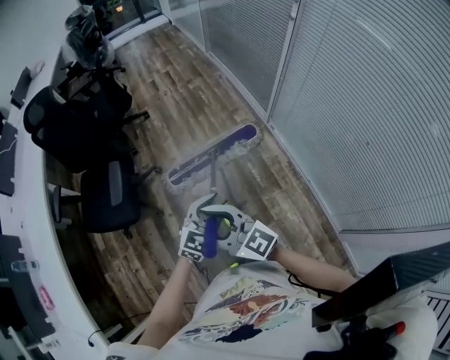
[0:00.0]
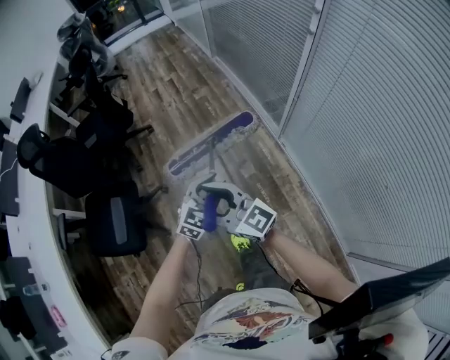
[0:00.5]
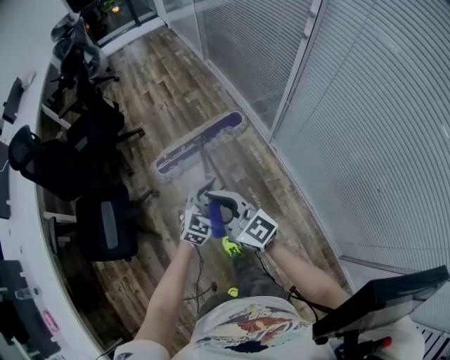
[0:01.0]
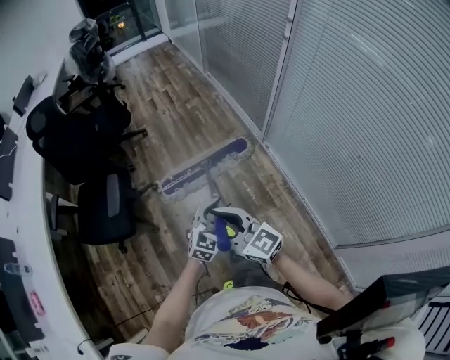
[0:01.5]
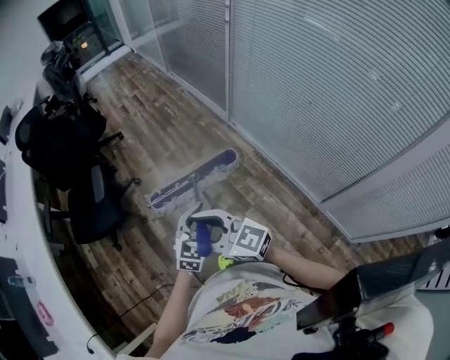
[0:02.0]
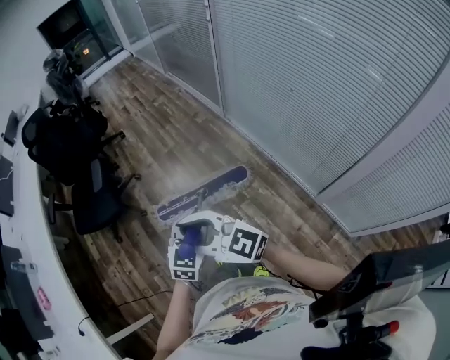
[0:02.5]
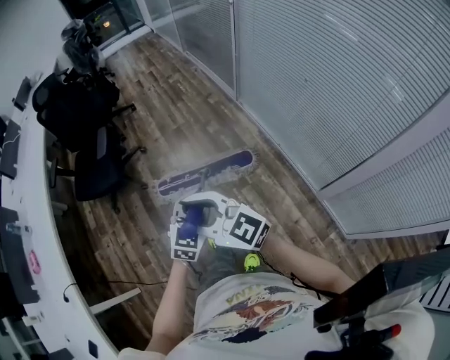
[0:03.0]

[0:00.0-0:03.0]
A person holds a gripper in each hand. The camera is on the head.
0.0 to 1.5 s: The left gripper travels forward and back again, approximately 30 cm each way; the right gripper is displaced to the right by some 5 cm, and reaches roughly 30 cm forward, then returns.
1.5 to 3.0 s: The two grippers travel together, backward, roughly 40 cm.

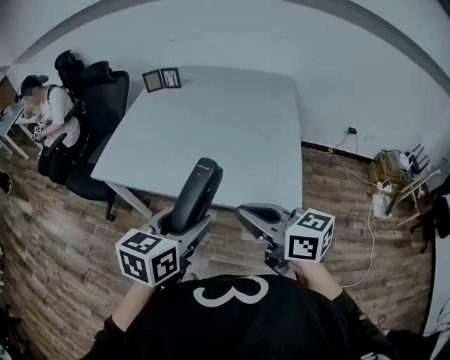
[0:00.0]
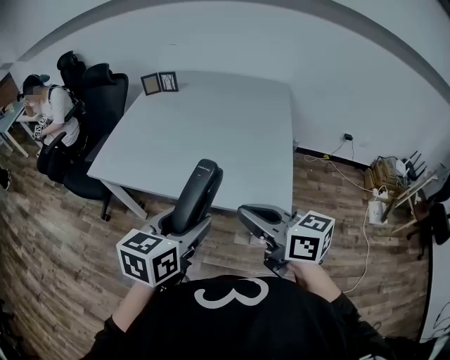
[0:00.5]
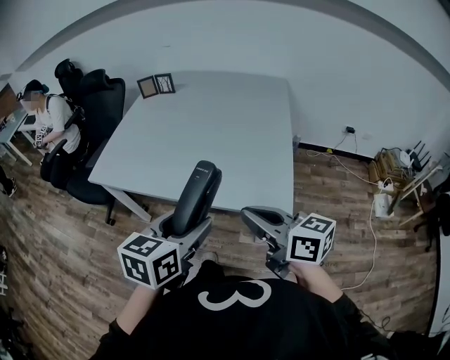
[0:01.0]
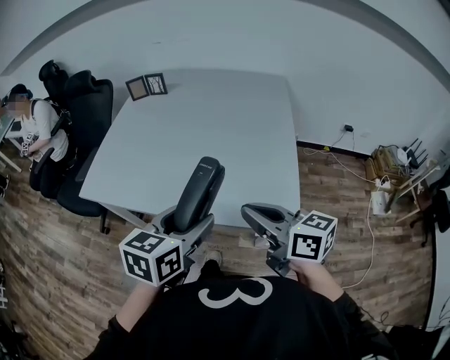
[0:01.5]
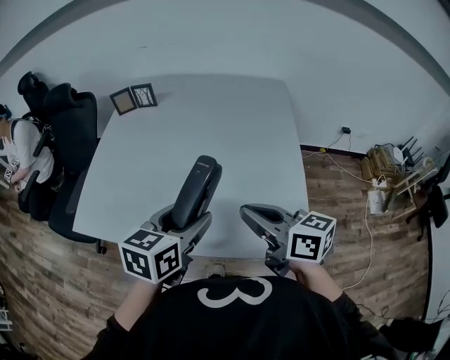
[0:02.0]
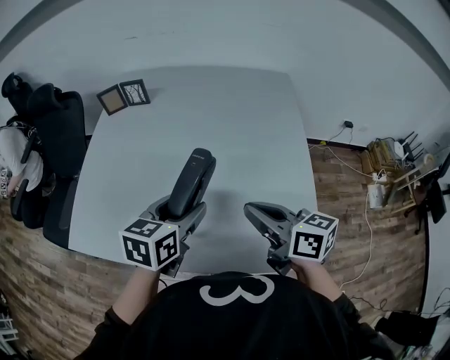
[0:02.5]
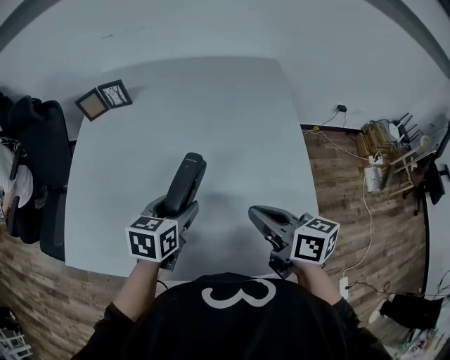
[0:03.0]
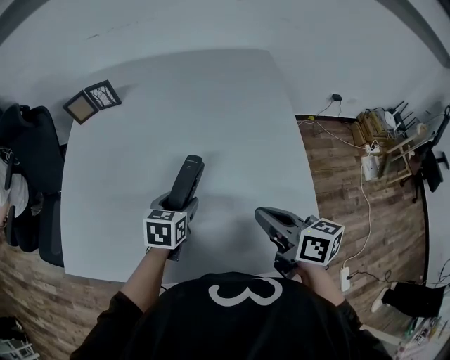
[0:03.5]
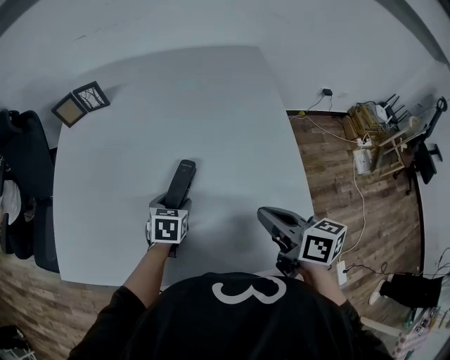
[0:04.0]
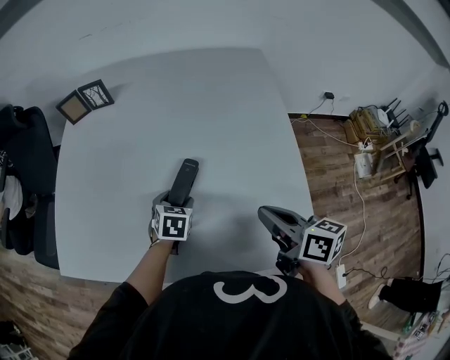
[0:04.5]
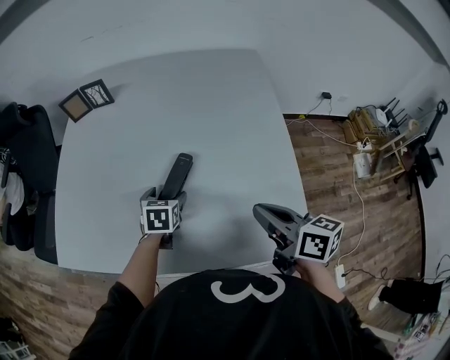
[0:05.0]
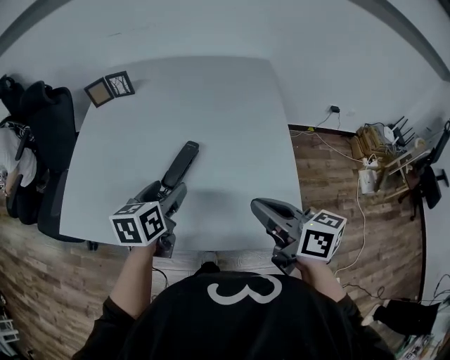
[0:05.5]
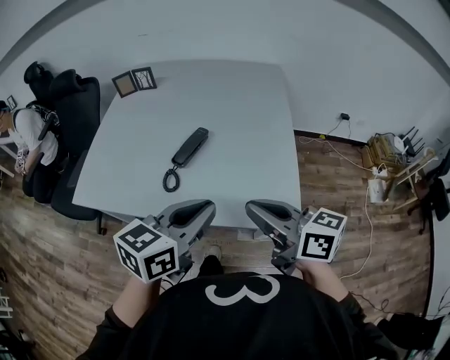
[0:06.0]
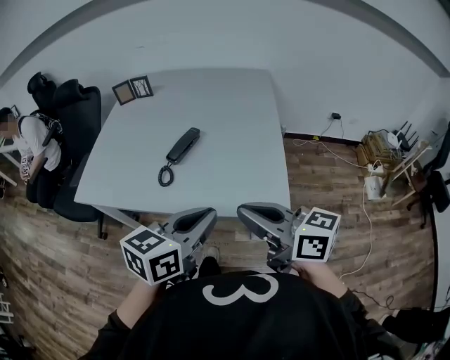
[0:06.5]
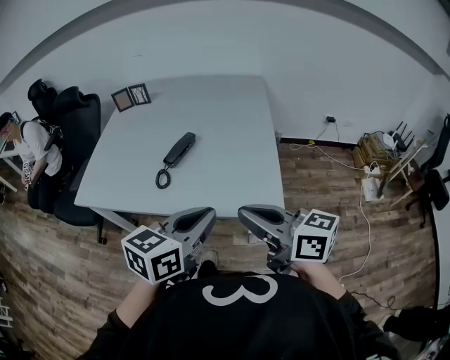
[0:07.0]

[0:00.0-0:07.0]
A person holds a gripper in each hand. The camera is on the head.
0.0 to 2.0 s: Both grippers move forward, approximately 20 cm.
2.0 to 3.5 s: The right gripper moves downward and forward, roughly 15 cm, and swivels about 20 degrees. Meanwhile the left gripper heads downward and forward, covering some 25 cm.
5.0 to 7.0 s: The left gripper heads backward and upward, covering roughly 40 cm, points its fingers about 30 degrees further upward, and closes its fingers, while the right gripper moves backward and upward, approximately 25 cm, and turns by some 30 degrees.

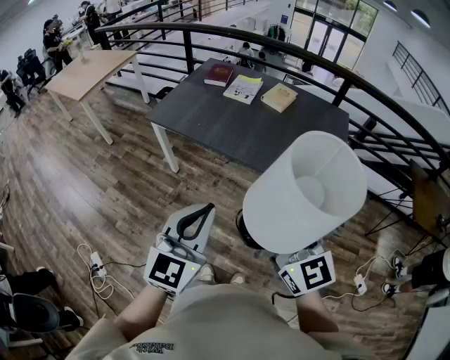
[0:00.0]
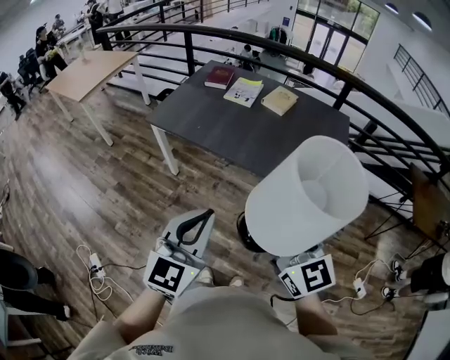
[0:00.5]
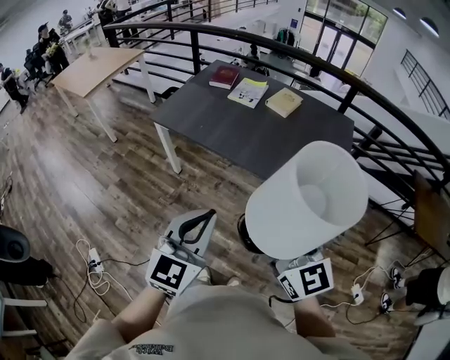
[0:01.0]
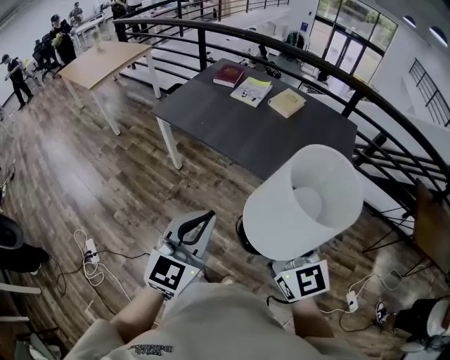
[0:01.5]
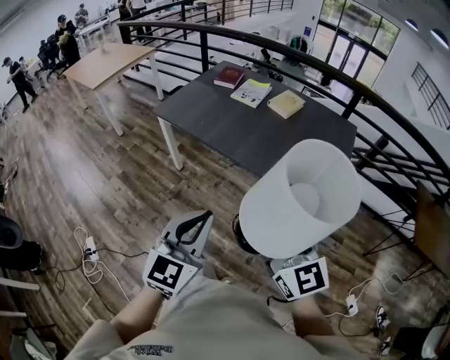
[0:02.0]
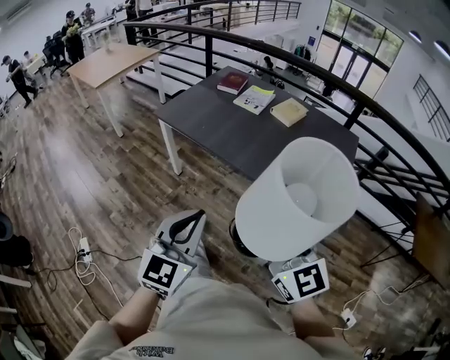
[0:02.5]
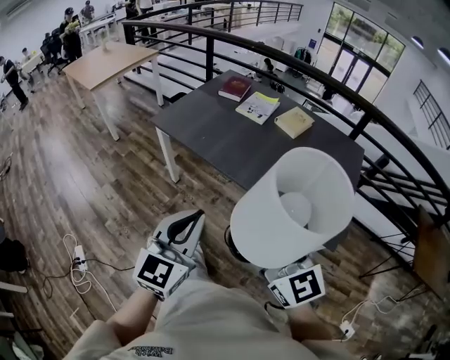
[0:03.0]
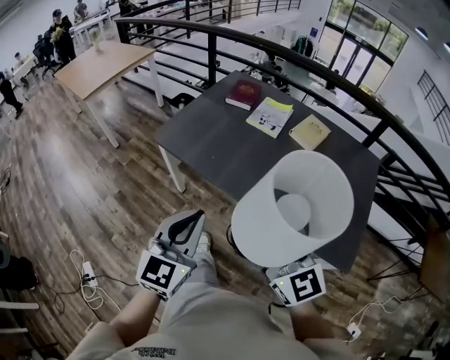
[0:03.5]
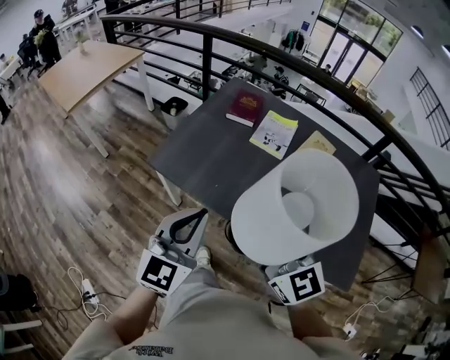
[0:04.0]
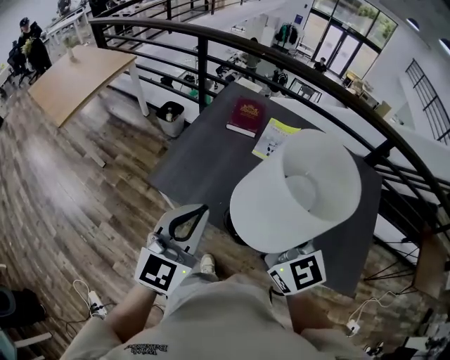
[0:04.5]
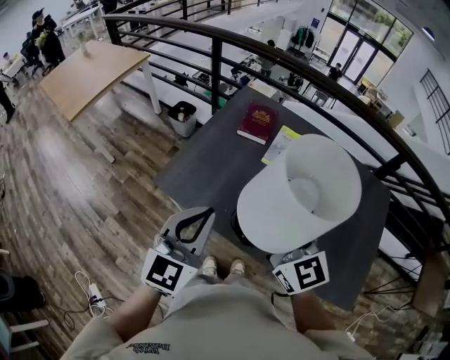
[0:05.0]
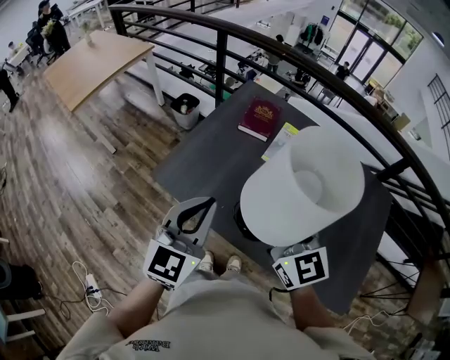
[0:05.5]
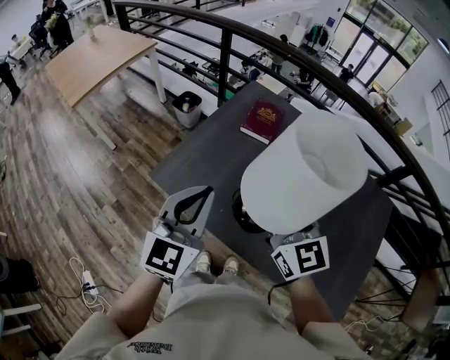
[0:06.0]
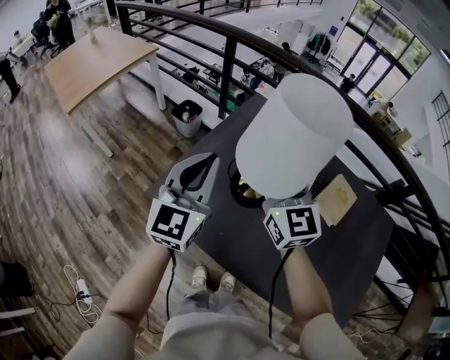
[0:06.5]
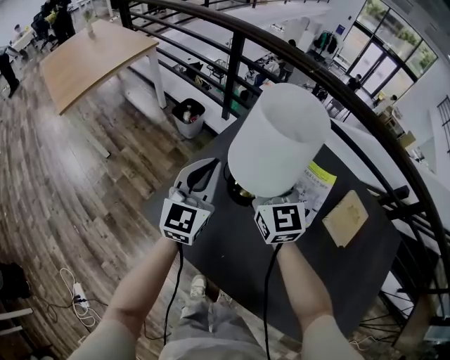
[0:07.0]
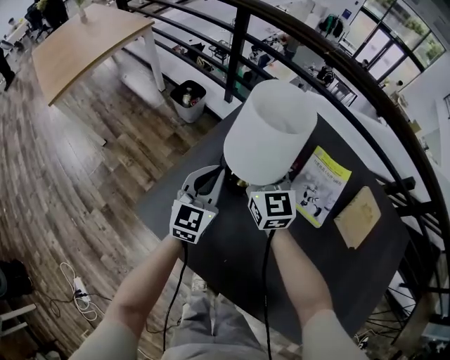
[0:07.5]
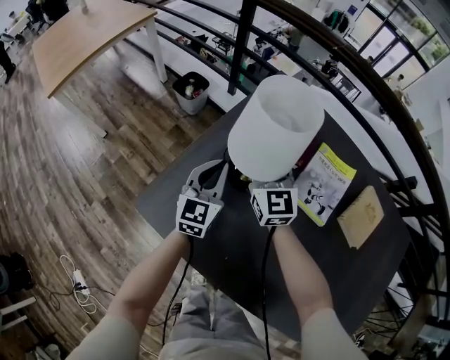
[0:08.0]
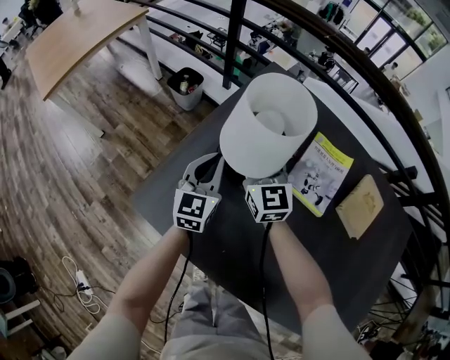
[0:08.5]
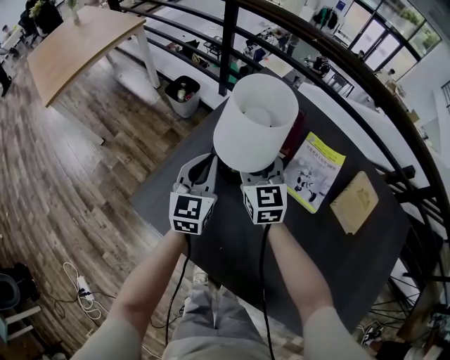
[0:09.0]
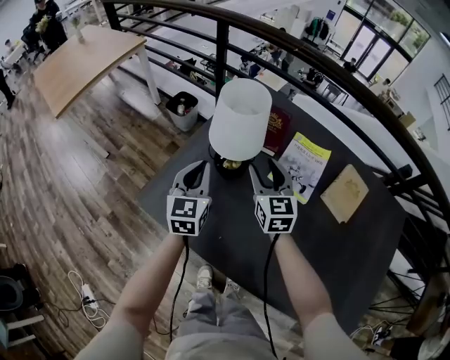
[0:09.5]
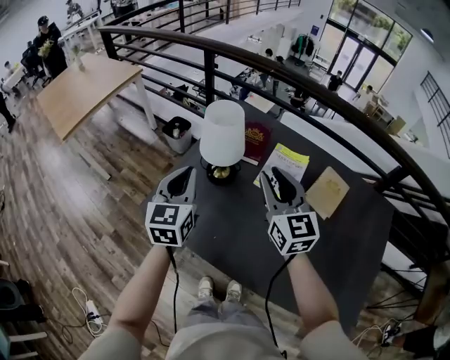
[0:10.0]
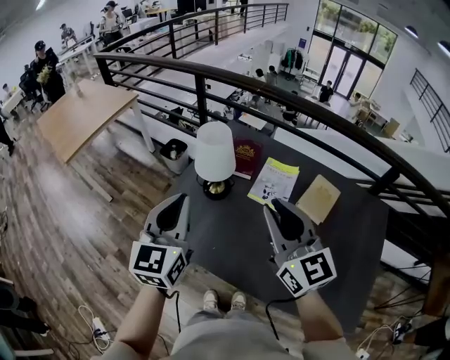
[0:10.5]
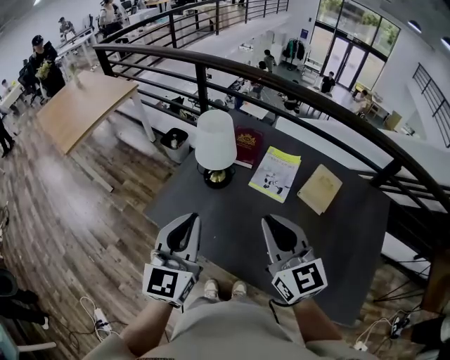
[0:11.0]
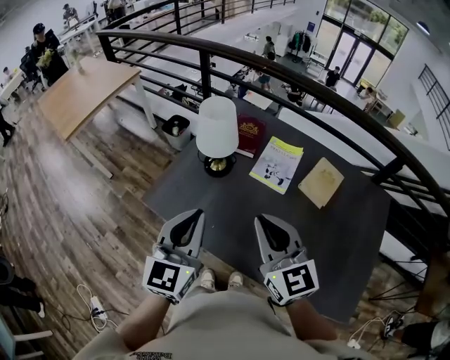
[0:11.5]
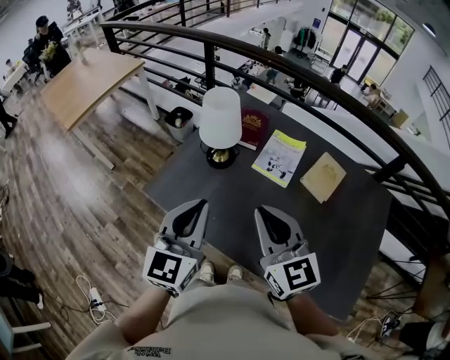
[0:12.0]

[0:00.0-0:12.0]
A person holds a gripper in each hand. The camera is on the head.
0.0 to 2.0 s: Both grippers move to the right, roughly 5 cm.
2.0 to 4.0 s: The two grippers travel together, forward, approximately 50 cm.
4.0 to 6.0 s: The grippers both shift forward by some 20 cm.
6.0 to 8.0 s: The two grippers go some 40 cm forward and downward.
8.0 to 10.0 s: The left gripper goes about 25 cm upward and backward. Meanwhile the right gripper shifts roughly 30 cm backward, upward and to the right, and opens, then closes once more.
10.0 to 12.0 s: Both grippers travel together backward, roughly 15 cm. The right gripper closes.

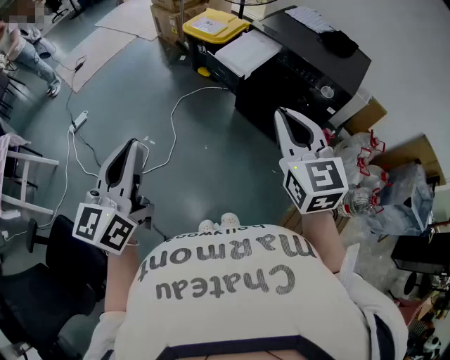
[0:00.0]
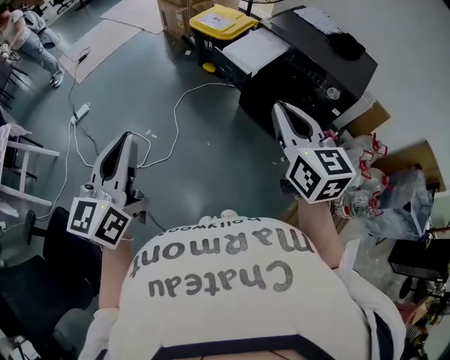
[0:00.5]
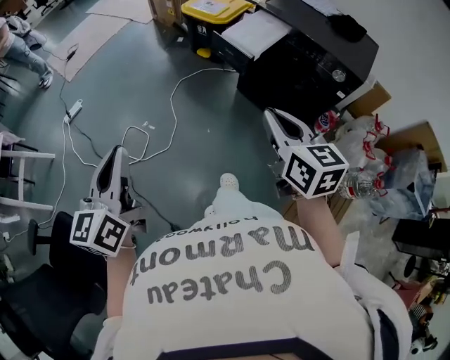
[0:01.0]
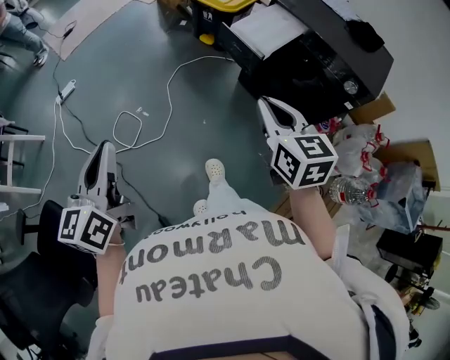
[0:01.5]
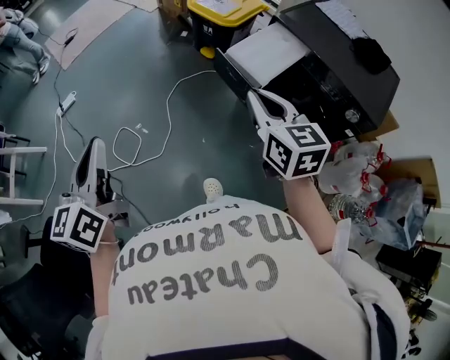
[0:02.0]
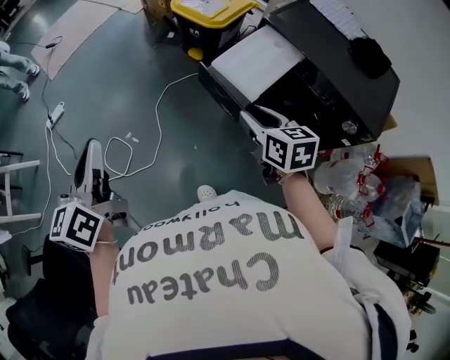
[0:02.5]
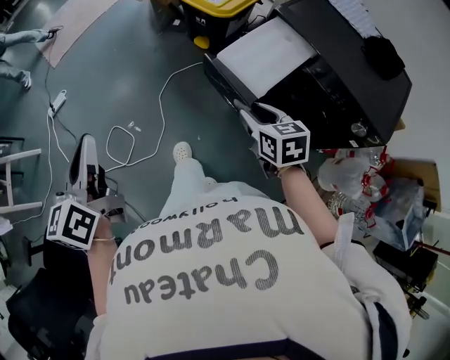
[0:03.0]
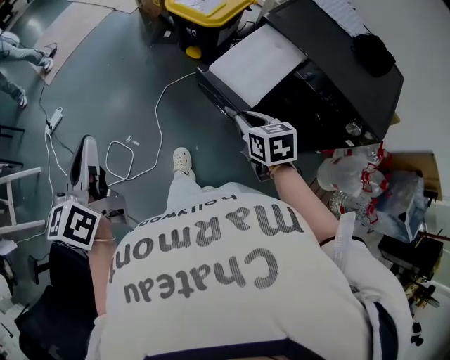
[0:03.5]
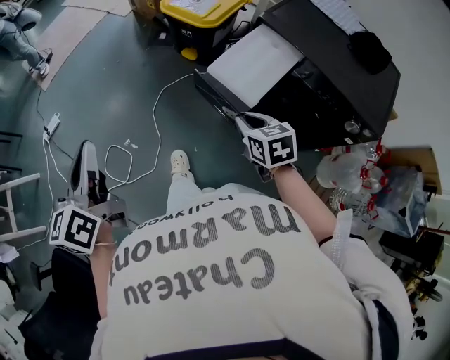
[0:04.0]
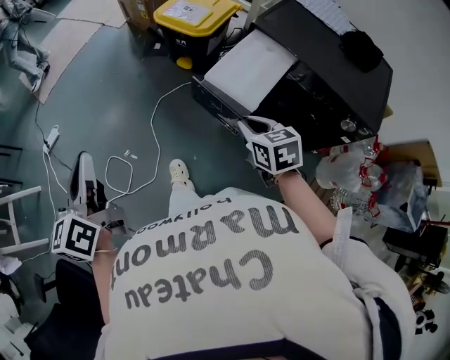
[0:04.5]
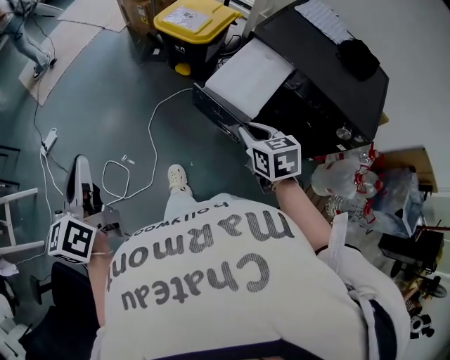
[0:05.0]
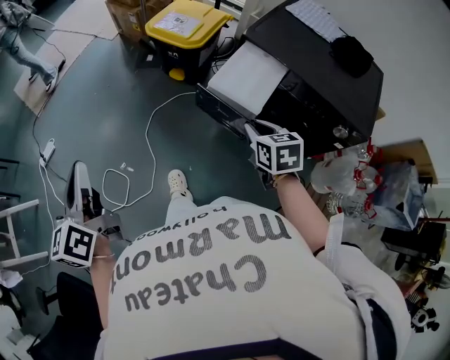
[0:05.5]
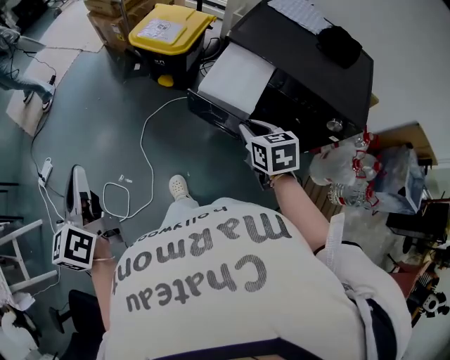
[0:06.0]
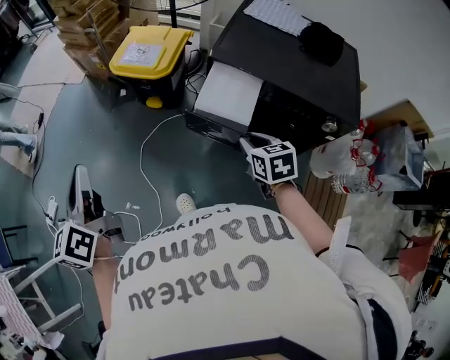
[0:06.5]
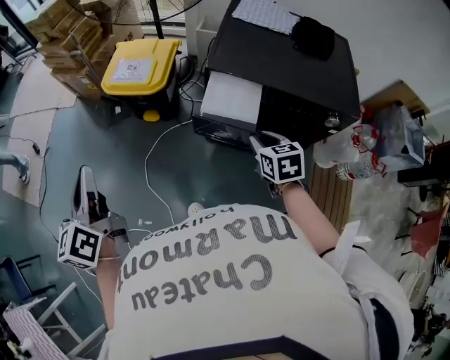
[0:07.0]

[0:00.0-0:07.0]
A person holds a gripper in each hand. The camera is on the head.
0.0 to 2.0 s: The right gripper goes about 25 cm forward and downward, and rotates approximately 20 degrees. Meanwhile the left gripper travels forward, to the left and downward by roughly 20 cm.
2.0 to 3.5 s: The left gripper is displaced forward by about 15 cm. The right gripper heads downward and forward, covering approximately 20 cm, changes its angle by roughly 20 degrees, and opens, then closes once more.
3.5 to 5.0 s: The grippers make only small movements.
5.0 to 7.0 s: The left gripper shifts by about 25 cm, and swivels approximately 20 degrees. Meanwhile the right gripper moves some 10 cm, and turns by approximately 30 degrees.
